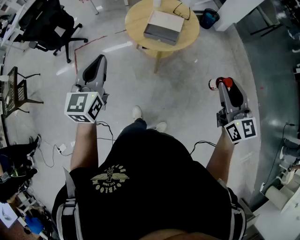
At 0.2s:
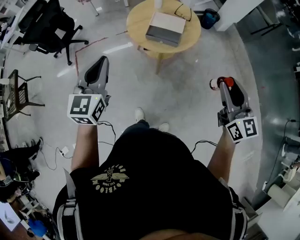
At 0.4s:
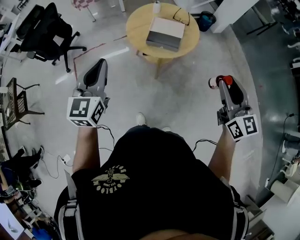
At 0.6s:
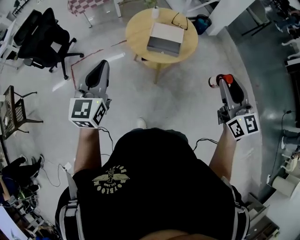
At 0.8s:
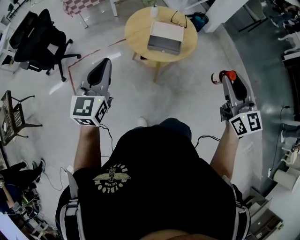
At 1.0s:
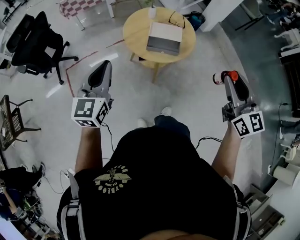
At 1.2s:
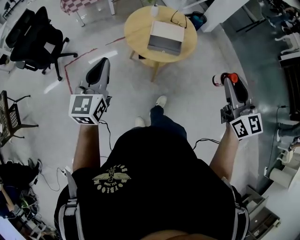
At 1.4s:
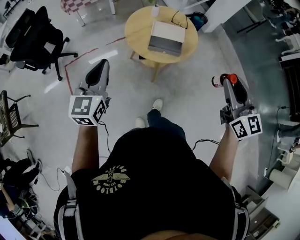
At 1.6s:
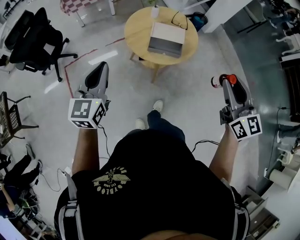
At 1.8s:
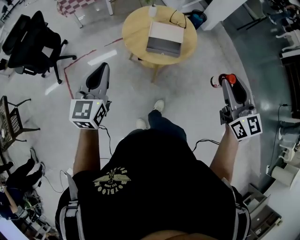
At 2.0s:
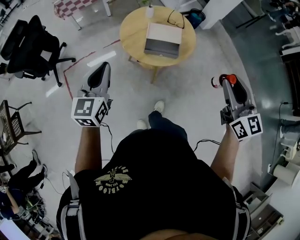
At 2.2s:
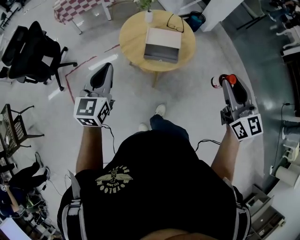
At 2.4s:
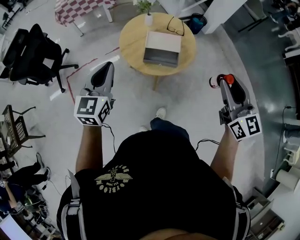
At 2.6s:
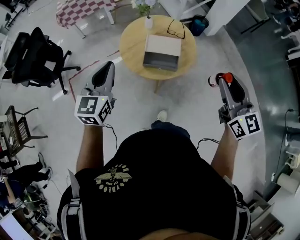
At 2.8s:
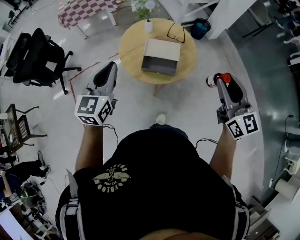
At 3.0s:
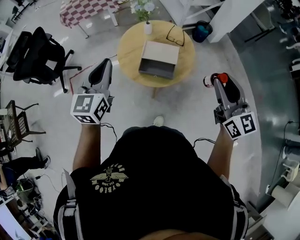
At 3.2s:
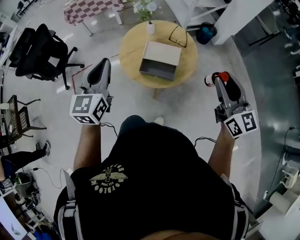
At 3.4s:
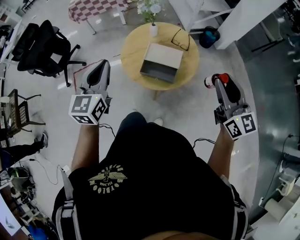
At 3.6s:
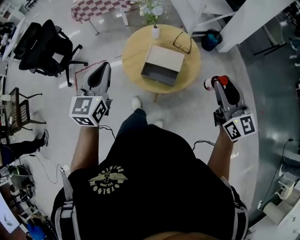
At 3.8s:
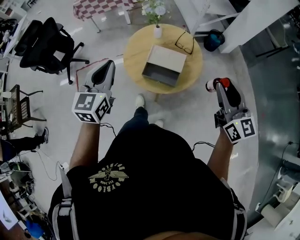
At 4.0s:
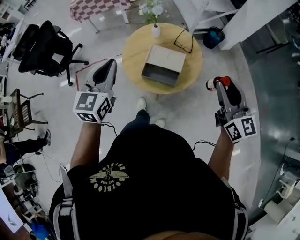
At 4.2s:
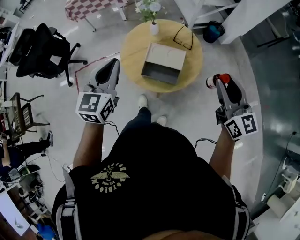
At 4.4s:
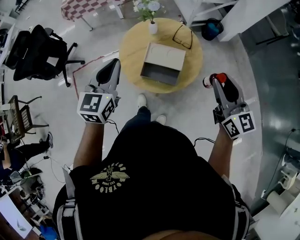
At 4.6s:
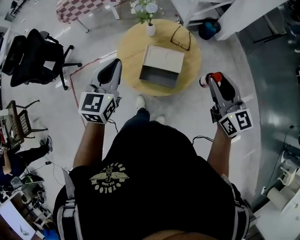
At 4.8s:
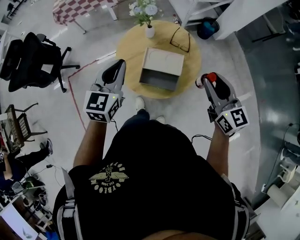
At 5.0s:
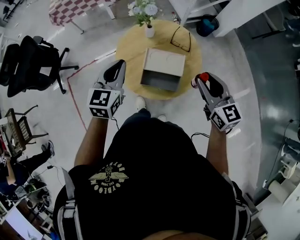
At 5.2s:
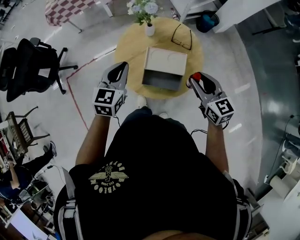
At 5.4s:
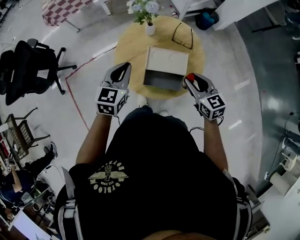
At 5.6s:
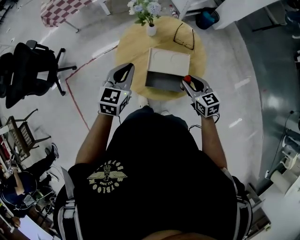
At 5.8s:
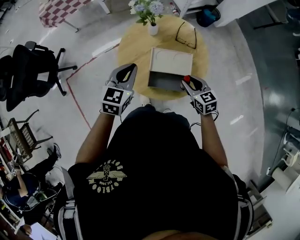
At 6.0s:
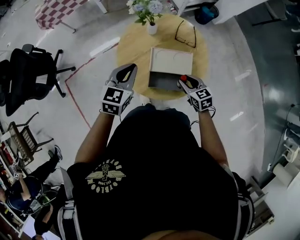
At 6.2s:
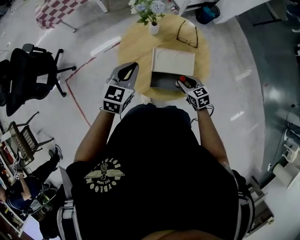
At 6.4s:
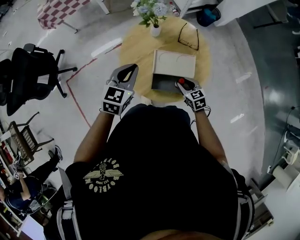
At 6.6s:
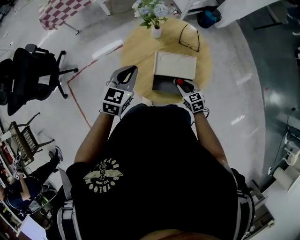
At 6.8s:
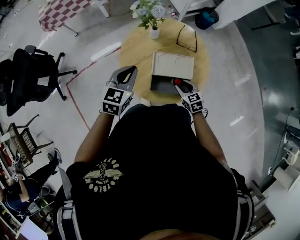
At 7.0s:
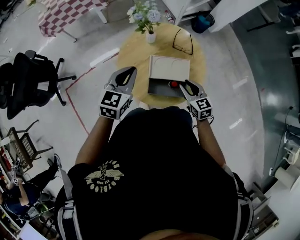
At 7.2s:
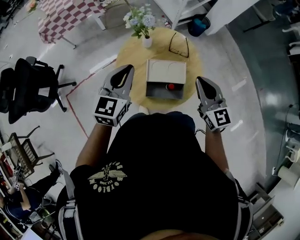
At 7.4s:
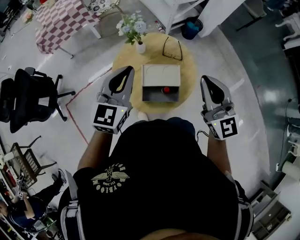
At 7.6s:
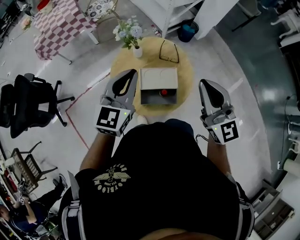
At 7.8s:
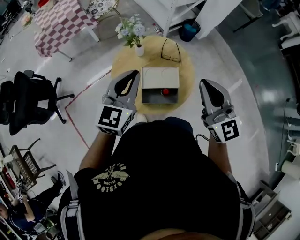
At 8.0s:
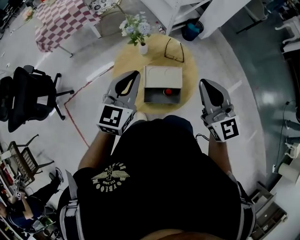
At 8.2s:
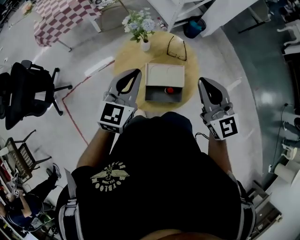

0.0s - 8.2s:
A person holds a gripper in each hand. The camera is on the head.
0.0s - 1.6s: Both grippers travel together to the left and forward, about 15 cm.
1.6s - 3.2s: Both grippers move forward and to the right, approximately 20 cm.
3.2s - 5.0s: The grippers both shift forward and downward by about 20 cm.
5.0s - 6.6s: The left gripper heads downward and forward, covering approximately 10 cm, while the right gripper goes some 30 cm downward, and swivels about 30 degrees.
6.6s - 8.2s: The right gripper moves upward, about 40 cm, tilts its fingers approximately 40 degrees upward, and closes. Meanwhile the left gripper shifts roughly 15 cm upward.

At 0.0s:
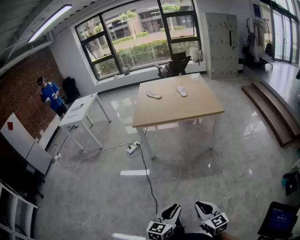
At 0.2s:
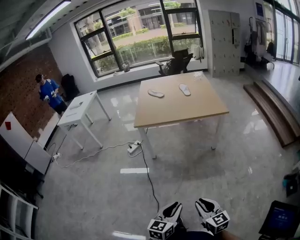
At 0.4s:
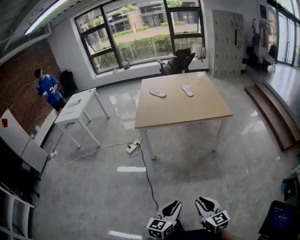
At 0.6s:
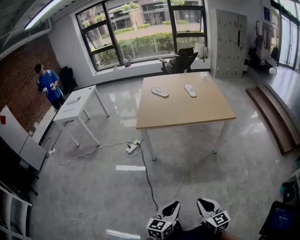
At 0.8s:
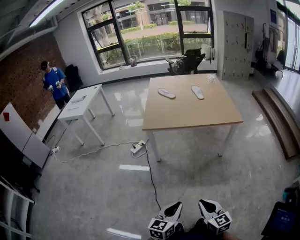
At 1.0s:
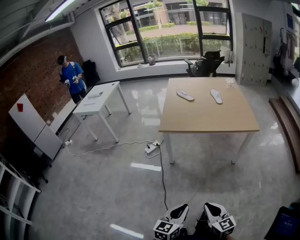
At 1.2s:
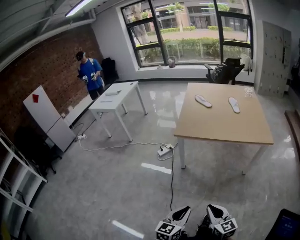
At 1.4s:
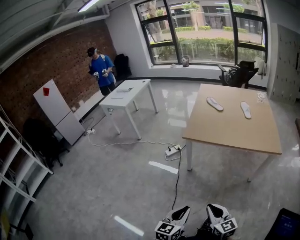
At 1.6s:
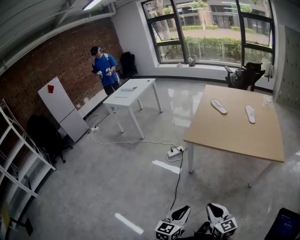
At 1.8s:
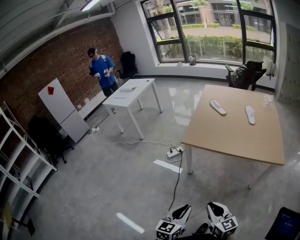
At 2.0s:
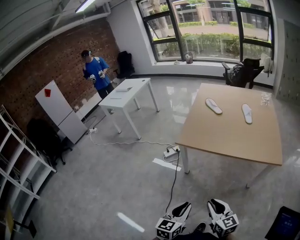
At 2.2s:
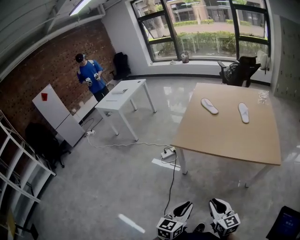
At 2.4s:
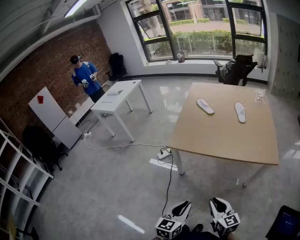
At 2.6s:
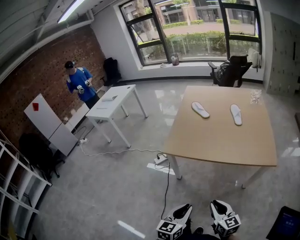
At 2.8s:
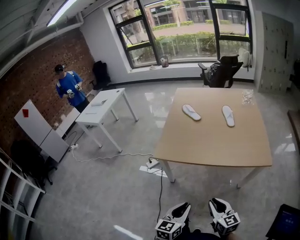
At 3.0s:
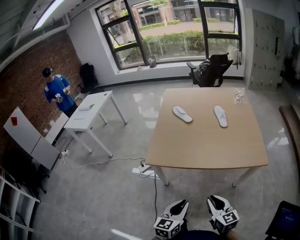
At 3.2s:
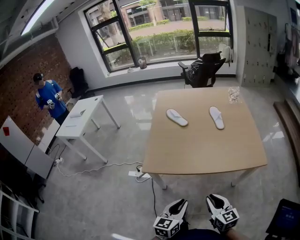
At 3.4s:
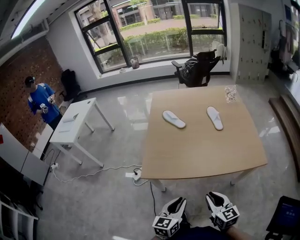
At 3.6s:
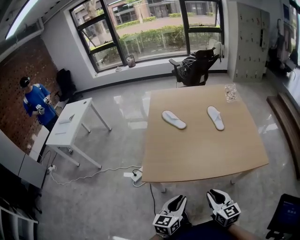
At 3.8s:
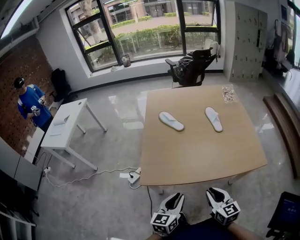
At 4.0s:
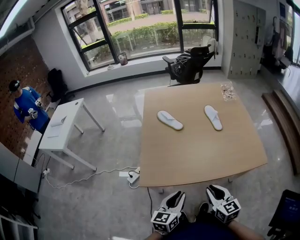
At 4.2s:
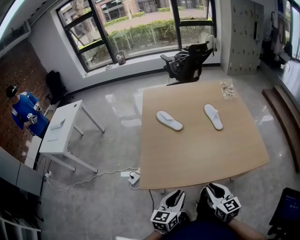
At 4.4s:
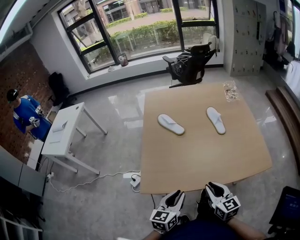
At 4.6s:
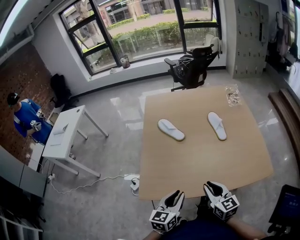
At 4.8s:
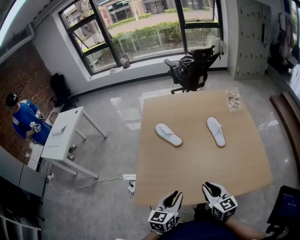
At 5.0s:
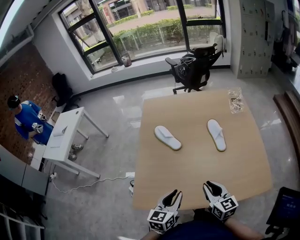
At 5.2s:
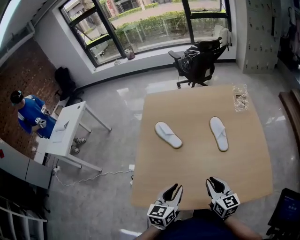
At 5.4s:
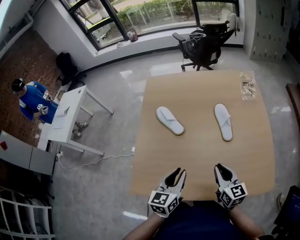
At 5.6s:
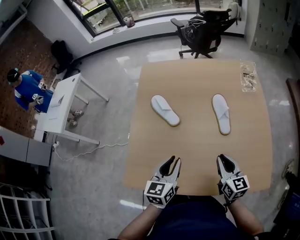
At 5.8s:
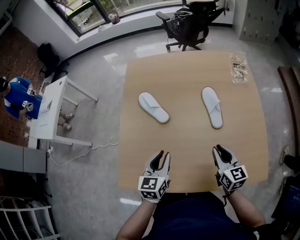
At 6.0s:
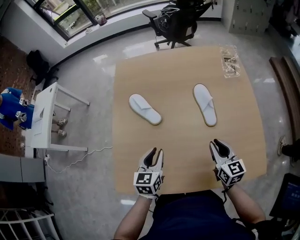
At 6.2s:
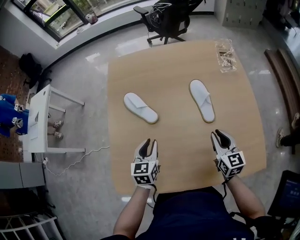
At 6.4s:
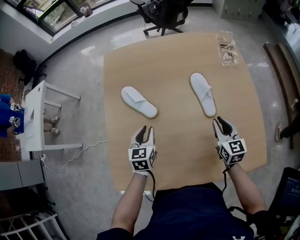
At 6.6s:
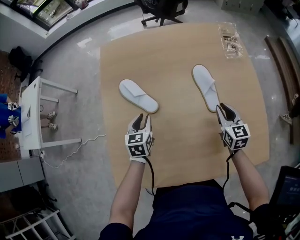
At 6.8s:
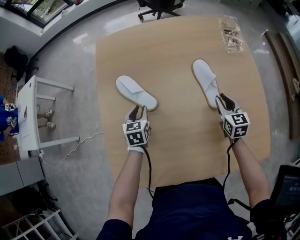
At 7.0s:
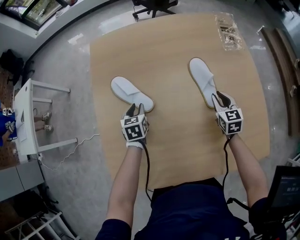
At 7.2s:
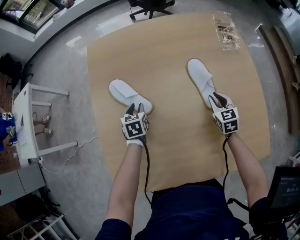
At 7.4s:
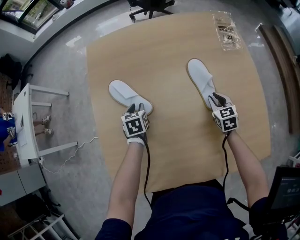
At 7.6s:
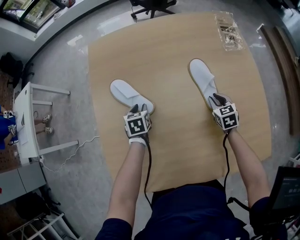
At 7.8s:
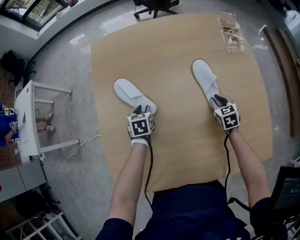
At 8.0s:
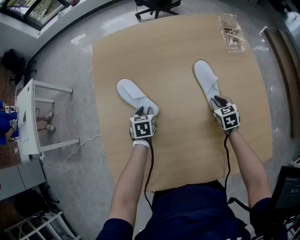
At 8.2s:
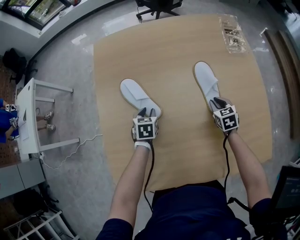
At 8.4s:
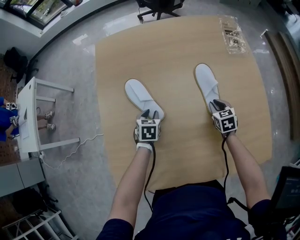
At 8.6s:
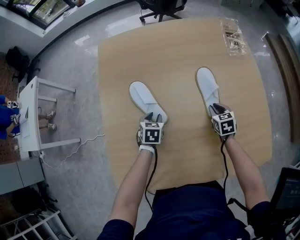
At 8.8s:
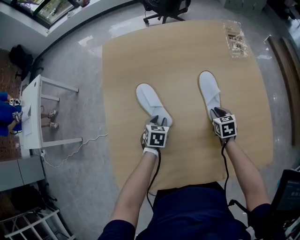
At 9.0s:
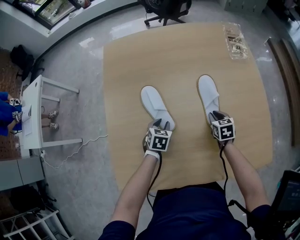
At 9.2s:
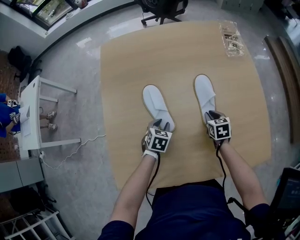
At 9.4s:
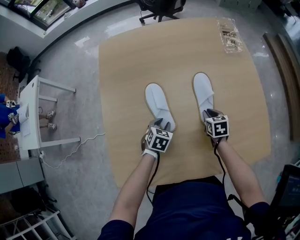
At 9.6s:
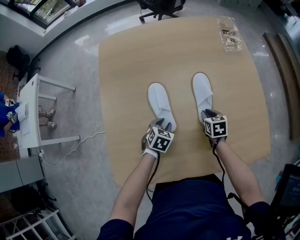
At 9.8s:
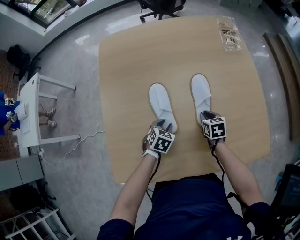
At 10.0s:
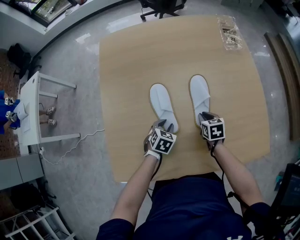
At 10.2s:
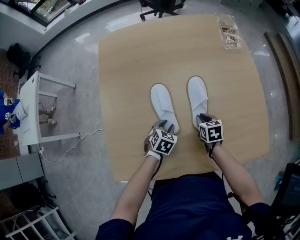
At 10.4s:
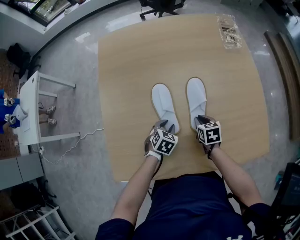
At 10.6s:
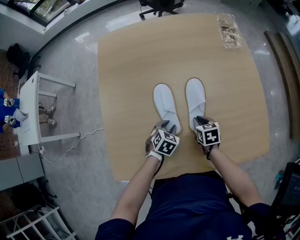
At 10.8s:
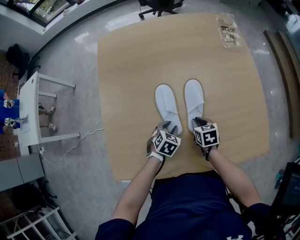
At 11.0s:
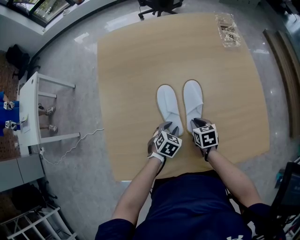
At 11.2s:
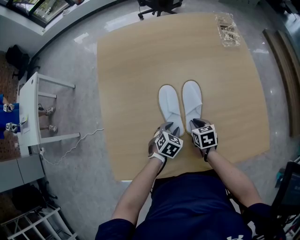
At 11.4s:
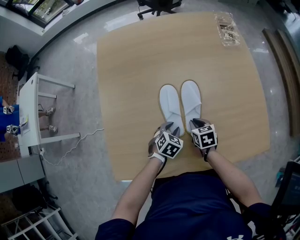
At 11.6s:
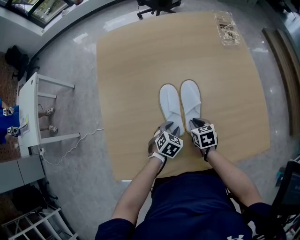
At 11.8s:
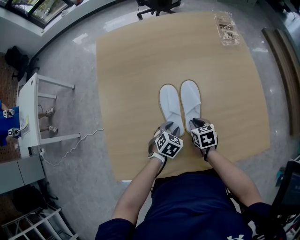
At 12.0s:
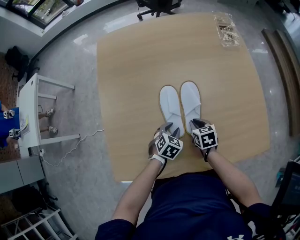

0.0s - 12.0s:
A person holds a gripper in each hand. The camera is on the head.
0.0s - 1.6s: Both grippers move forward, some 30 cm. The left gripper rotates about 20 degrees.
1.6s - 3.0s: Both grippers travel together forward and to the right, about 25 cm.
3.0s - 4.4s: Both grippers travel together forward, about 20 cm.
4.4s - 6.0s: The left gripper heads forward, covering roughly 30 cm. The right gripper heads forward and to the right, covering approximately 30 cm.
6.0s - 7.6s: The right gripper moves downward and forward, some 25 cm, and turns by about 30 degrees, while the left gripper moves forward and downward, about 25 cm, and turns by approximately 30 degrees.
7.6s - 9.0s: The right gripper is displaced backward by some 5 cm, while the left gripper travels backward and to the right by about 10 cm, and turns by about 20 degrees.
9.0s - 10.4s: The left gripper goes approximately 10 cm backward and to the right. Meanwhile the right gripper goes some 10 cm backward and to the left.
10.4s - 12.0s: The grippers stay close to where they were, moving slightly.

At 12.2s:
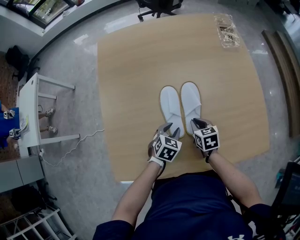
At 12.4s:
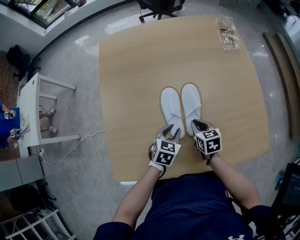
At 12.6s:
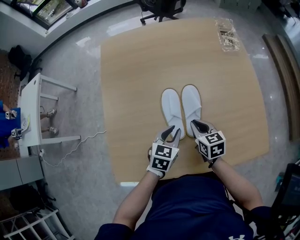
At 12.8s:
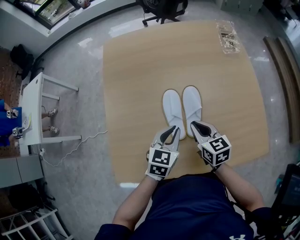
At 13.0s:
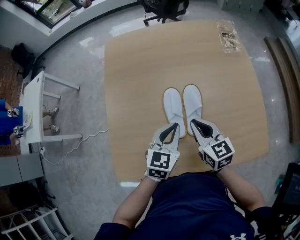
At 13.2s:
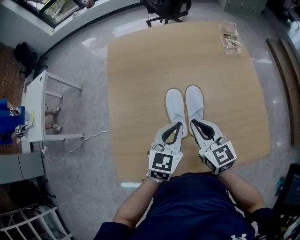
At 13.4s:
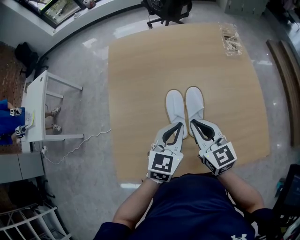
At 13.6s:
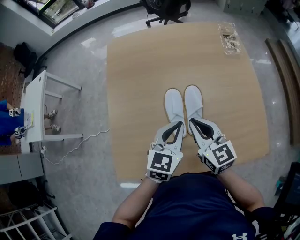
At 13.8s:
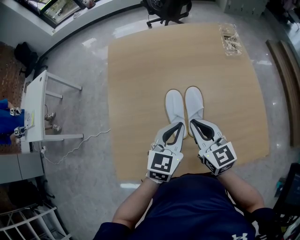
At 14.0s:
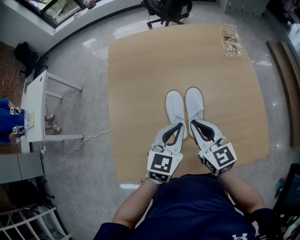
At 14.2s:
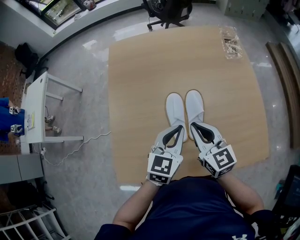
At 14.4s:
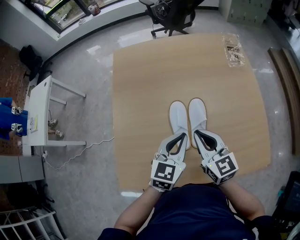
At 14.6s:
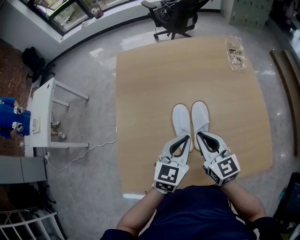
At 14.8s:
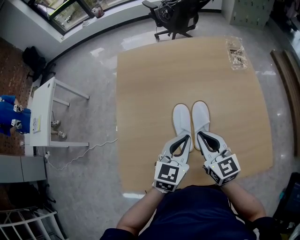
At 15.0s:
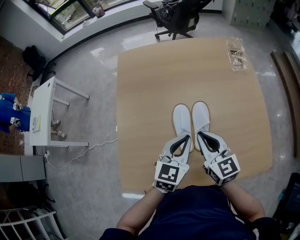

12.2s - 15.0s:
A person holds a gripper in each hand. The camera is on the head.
12.2s - 13.6s: Both grippers travel together upward, some 25 cm. The right gripper points its fingers roughly 40 degrees further upward. The left gripper tips its fingers upward by about 30 degrees, and closes its fingers.
13.6s - 15.0s: Both grippers stay about where they are.
